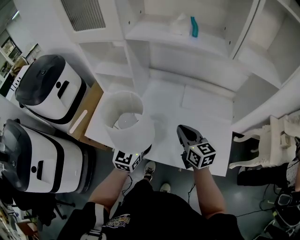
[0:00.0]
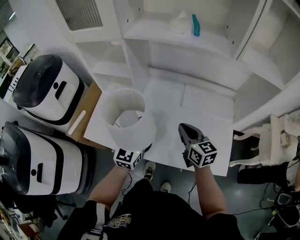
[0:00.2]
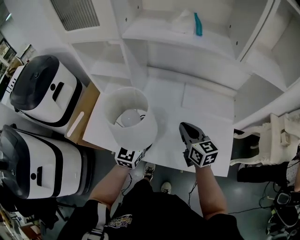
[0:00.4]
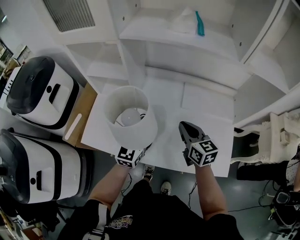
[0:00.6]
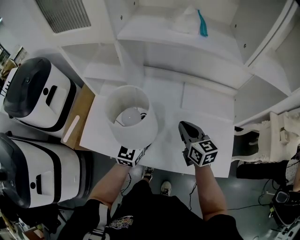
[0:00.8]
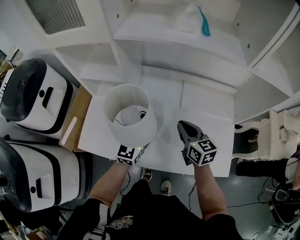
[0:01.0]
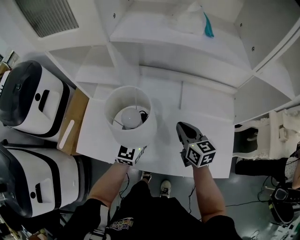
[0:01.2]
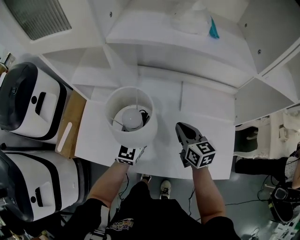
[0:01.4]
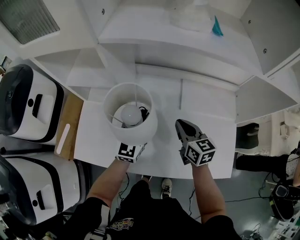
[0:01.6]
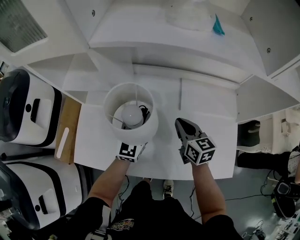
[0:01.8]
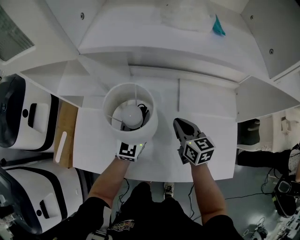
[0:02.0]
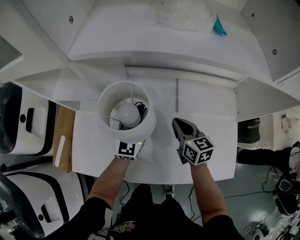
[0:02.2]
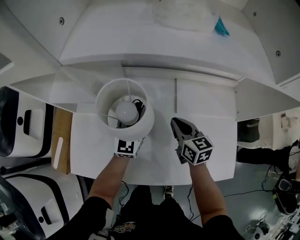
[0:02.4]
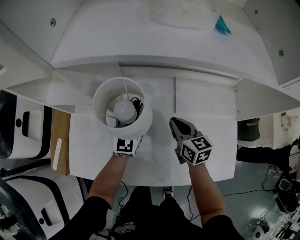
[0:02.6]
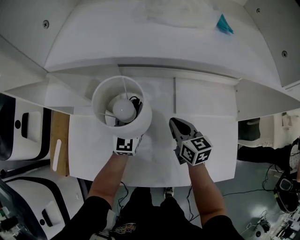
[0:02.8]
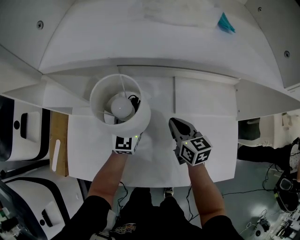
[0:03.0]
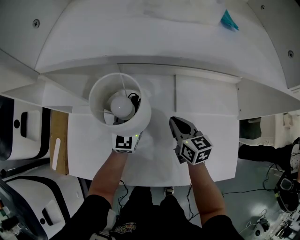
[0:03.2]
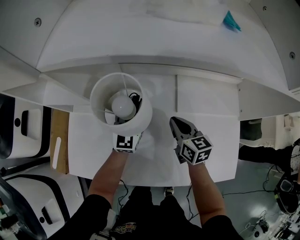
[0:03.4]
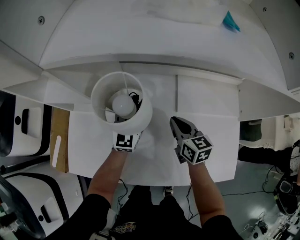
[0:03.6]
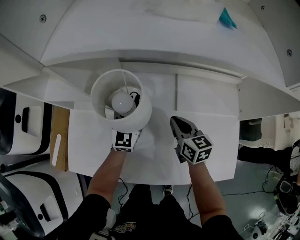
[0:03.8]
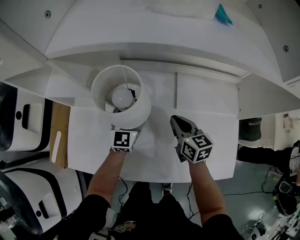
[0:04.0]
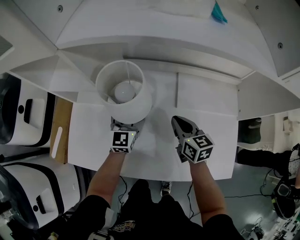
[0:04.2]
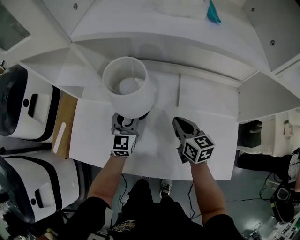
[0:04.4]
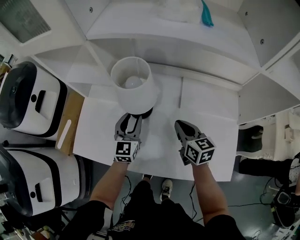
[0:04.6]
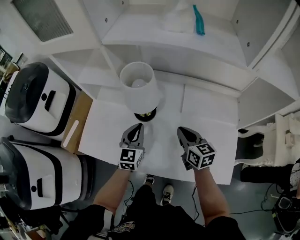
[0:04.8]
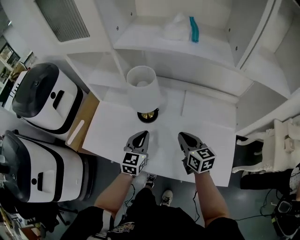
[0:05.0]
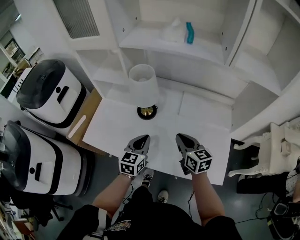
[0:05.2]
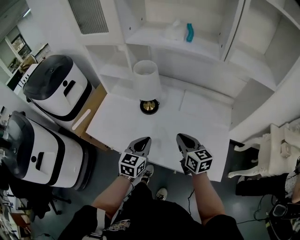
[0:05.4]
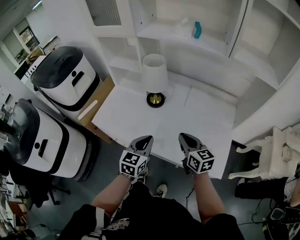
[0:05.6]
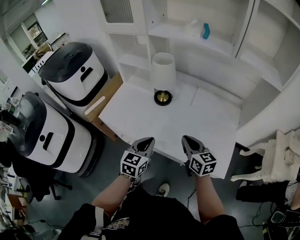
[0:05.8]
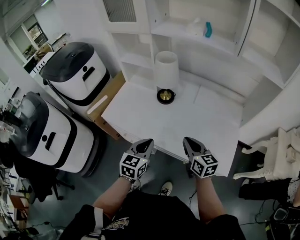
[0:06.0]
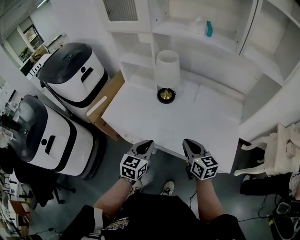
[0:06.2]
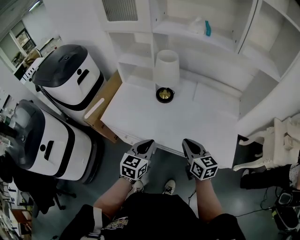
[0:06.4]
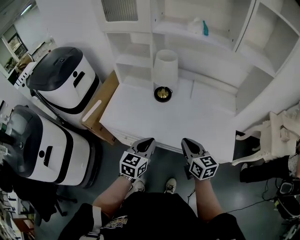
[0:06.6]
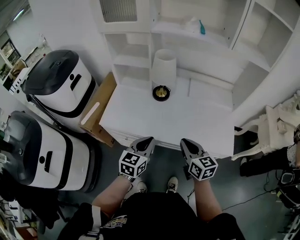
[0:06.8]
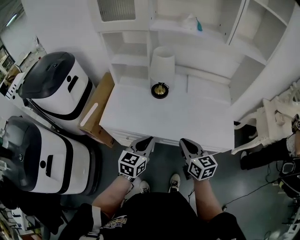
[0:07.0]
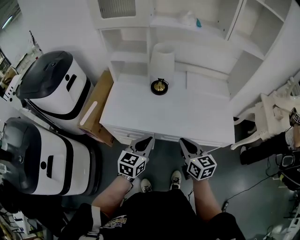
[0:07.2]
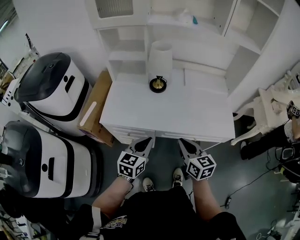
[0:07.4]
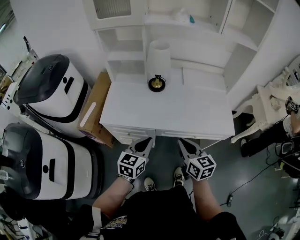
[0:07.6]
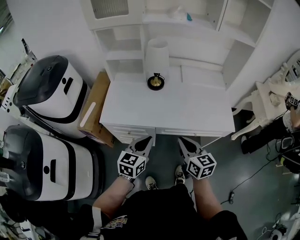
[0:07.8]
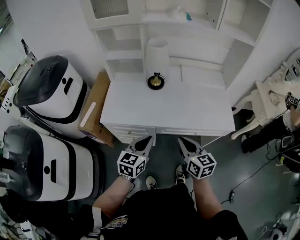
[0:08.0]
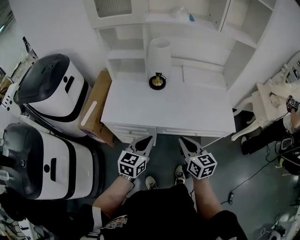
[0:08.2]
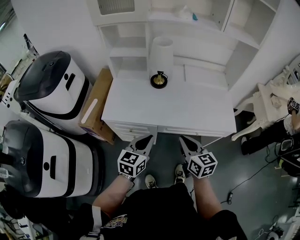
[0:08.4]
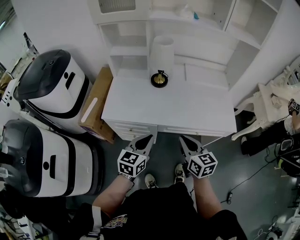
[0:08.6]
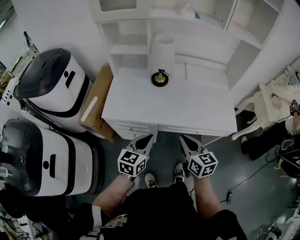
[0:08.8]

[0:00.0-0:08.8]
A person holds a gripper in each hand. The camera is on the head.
0:00.0 to 0:01.4: The two grippers go roughly 15 cm forward and downward.
0:01.4 to 0:03.0: Both grippers move forward and downward, roughly 10 cm.
0:03.0 to 0:04.4: The left gripper moves backward, roughly 5 cm.
0:04.4 to 0:05.8: The grippers both shift backward by roughly 30 cm. The left gripper closes its fingers.
0:05.8 to 0:07.4: The two grippers go approximately 20 cm to the left and backward. The left gripper swivels approximately 20 degrees.
0:07.4 to 0:08.8: The grippers stay close to where they were, moving slightly.

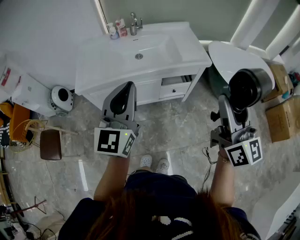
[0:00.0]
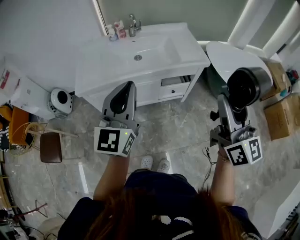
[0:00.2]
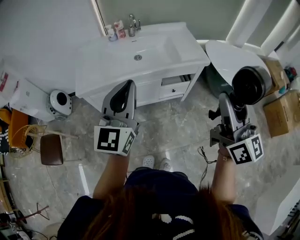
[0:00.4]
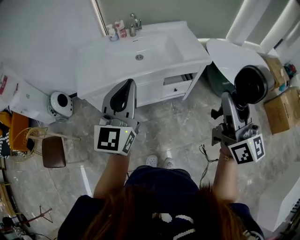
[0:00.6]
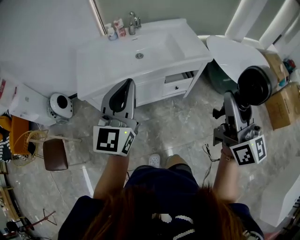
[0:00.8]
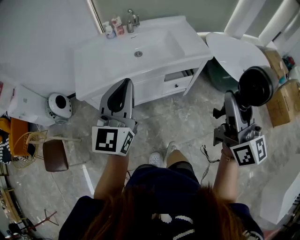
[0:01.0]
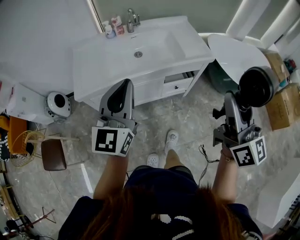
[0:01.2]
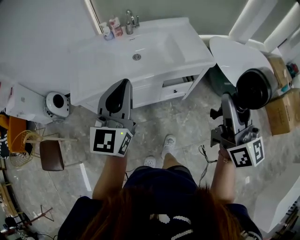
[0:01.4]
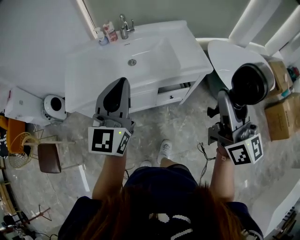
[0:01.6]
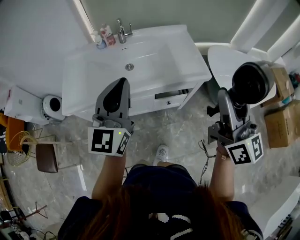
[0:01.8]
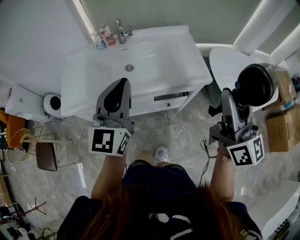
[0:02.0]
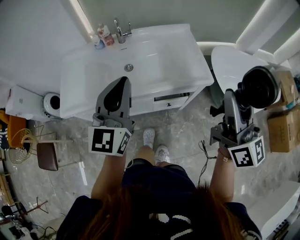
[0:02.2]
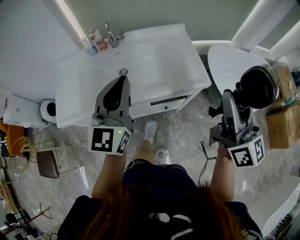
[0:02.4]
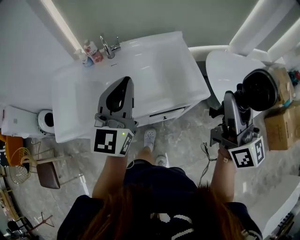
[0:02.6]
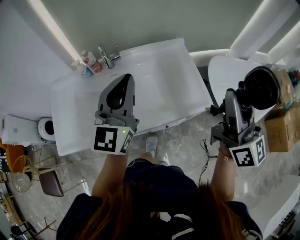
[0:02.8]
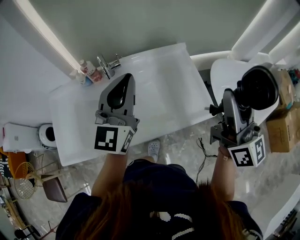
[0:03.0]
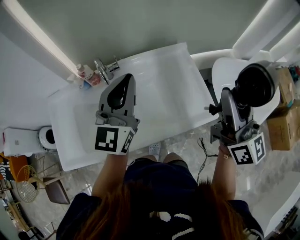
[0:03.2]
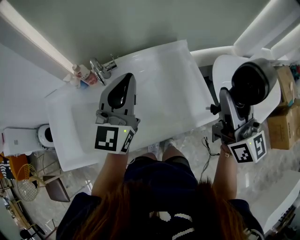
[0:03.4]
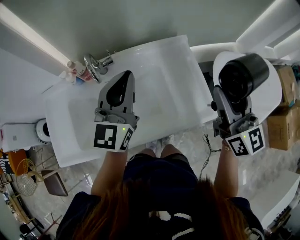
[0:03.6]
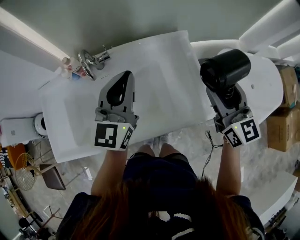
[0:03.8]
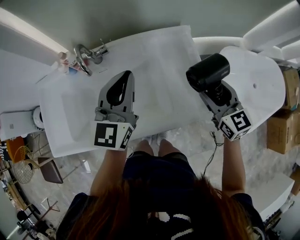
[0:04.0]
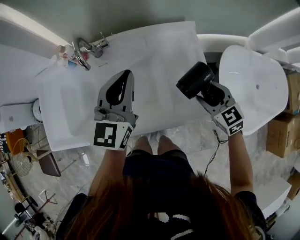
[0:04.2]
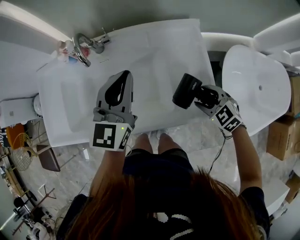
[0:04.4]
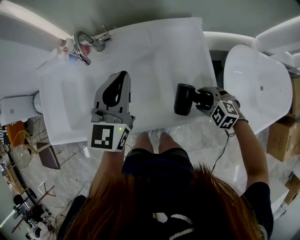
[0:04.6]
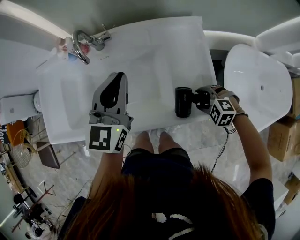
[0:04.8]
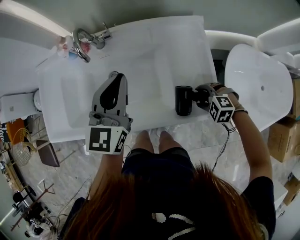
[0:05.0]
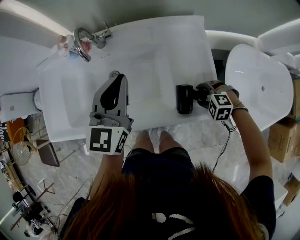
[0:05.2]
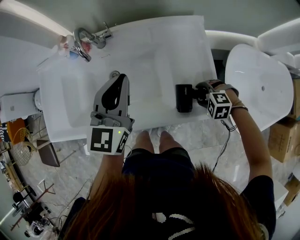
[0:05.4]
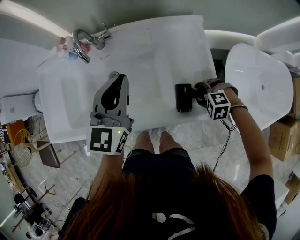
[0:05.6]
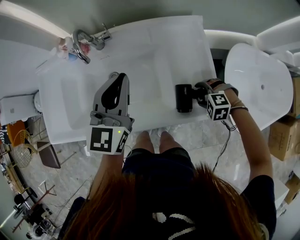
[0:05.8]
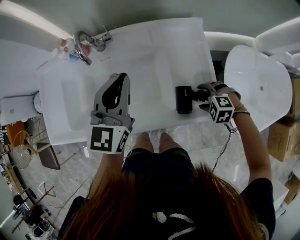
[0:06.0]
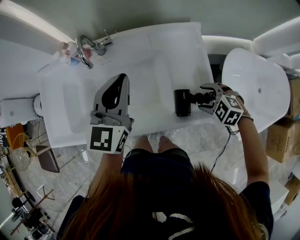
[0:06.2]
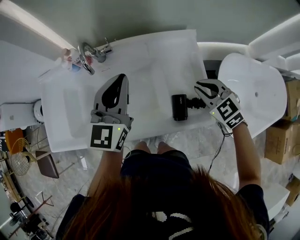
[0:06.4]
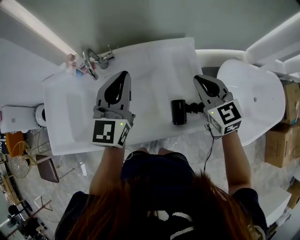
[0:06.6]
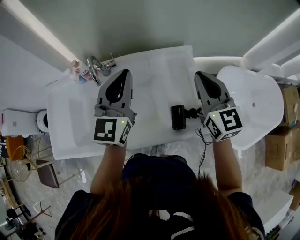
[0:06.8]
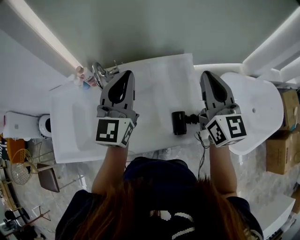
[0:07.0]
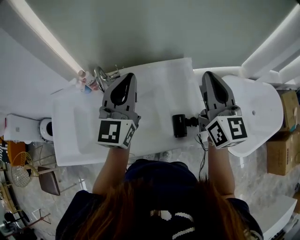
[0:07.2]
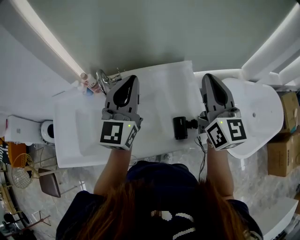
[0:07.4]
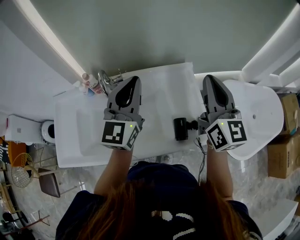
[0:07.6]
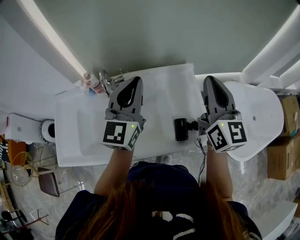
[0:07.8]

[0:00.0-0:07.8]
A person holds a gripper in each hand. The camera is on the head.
0:00.0 to 0:01.6: Both grippers travel together forward, some 15 cm.
0:01.6 to 0:03.2: The grippers both shift forward by about 40 cm.
0:03.2 to 0:04.6: The left gripper travels downward by some 15 cm. Meanwhile the right gripper heads downward, covering about 40 cm, and points its fingers some 80 degrees further downward.
0:06.2 to 0:07.8: The right gripper heads upward, covering approximately 35 cm, angles its fingers upward, by roughly 70 degrees, and closes; the left gripper heads upward, covering about 15 cm.

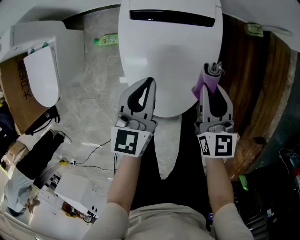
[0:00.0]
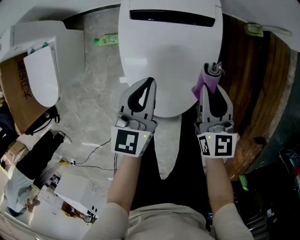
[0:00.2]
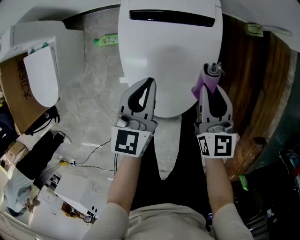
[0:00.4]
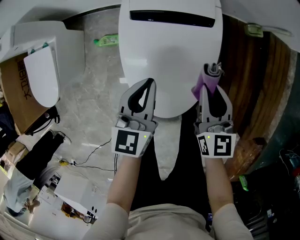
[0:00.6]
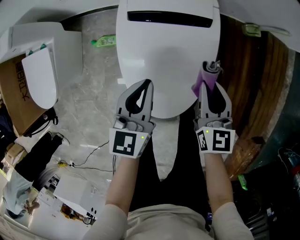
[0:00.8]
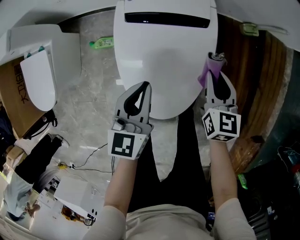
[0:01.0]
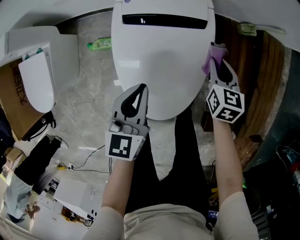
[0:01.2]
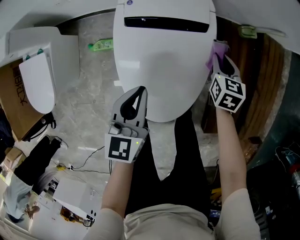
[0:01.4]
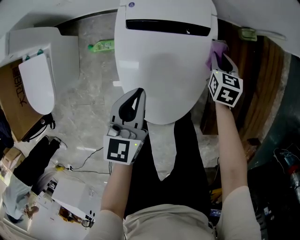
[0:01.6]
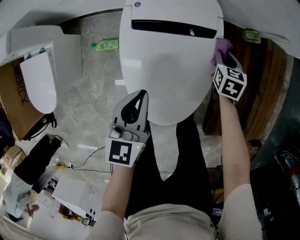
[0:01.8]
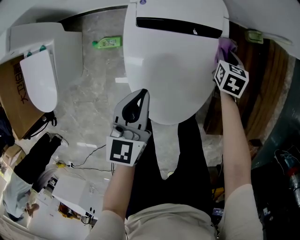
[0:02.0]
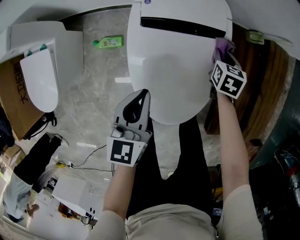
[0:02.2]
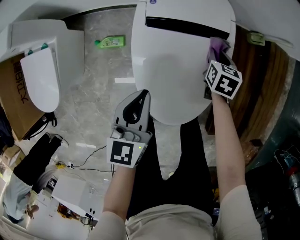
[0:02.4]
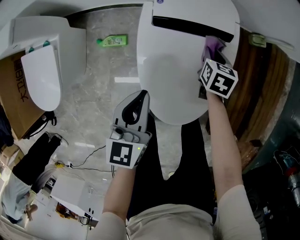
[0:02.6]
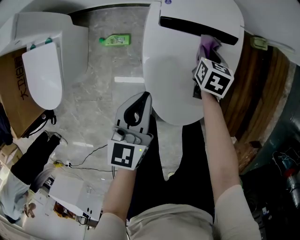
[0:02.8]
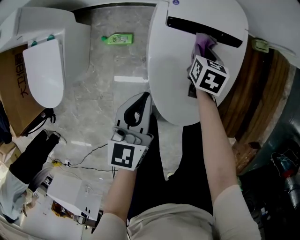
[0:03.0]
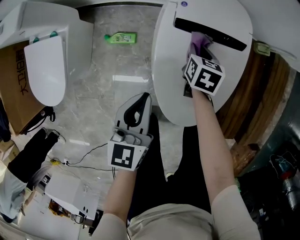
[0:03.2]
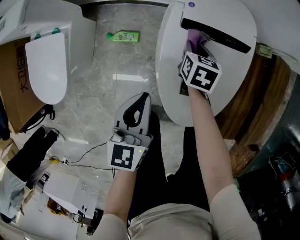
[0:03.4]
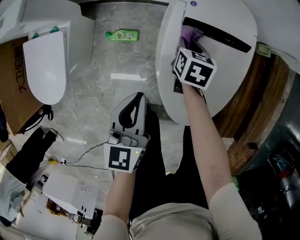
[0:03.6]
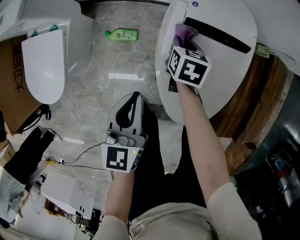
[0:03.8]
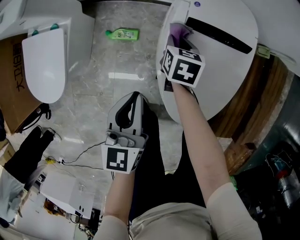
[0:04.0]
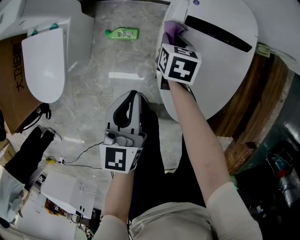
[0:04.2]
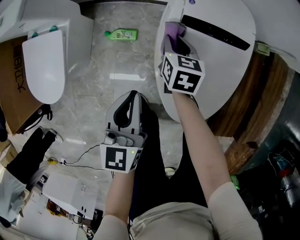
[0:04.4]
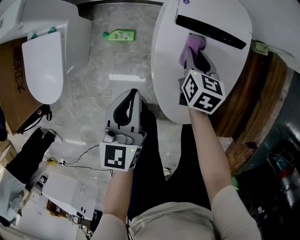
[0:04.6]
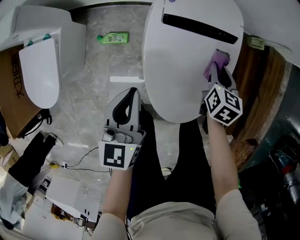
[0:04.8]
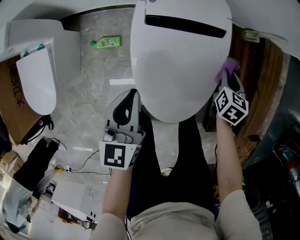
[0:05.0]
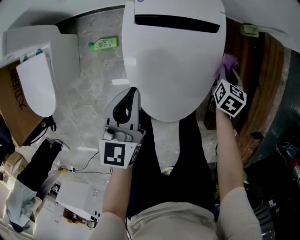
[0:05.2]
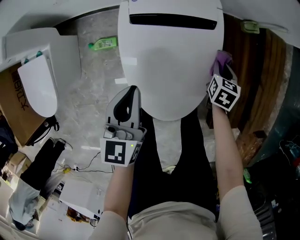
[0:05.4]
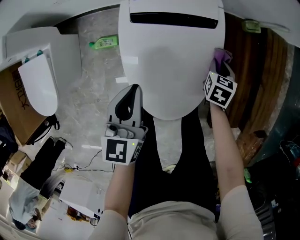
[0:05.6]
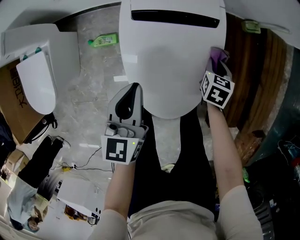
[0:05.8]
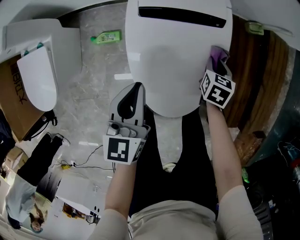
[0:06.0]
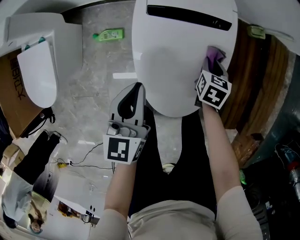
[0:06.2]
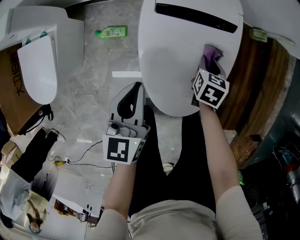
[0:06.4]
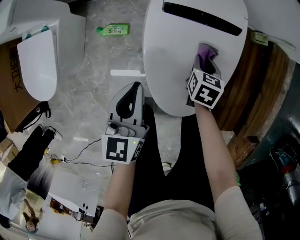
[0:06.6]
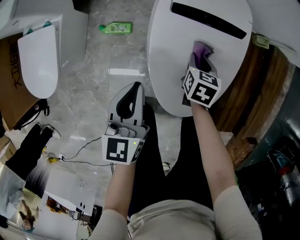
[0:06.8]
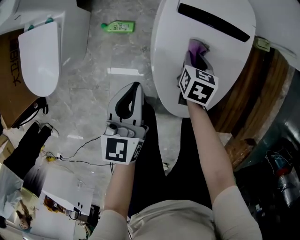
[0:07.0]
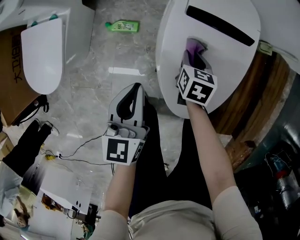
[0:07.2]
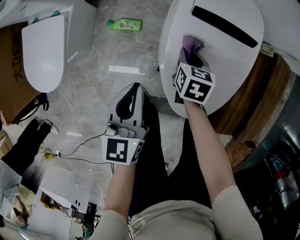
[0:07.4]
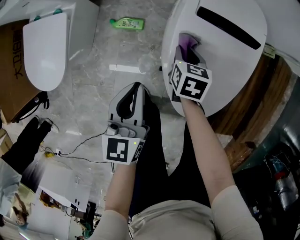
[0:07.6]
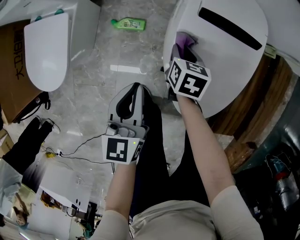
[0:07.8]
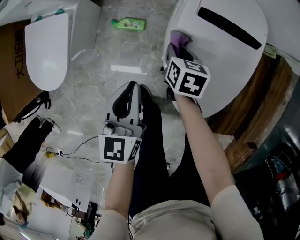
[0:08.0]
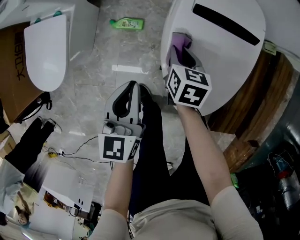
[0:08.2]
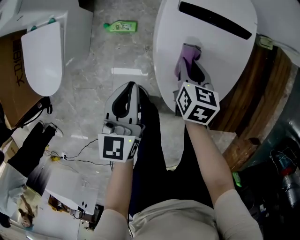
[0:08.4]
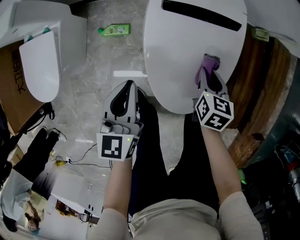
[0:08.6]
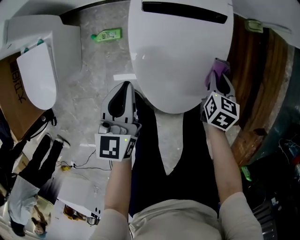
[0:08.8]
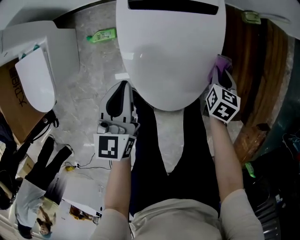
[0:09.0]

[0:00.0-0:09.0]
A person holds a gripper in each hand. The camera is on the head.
0:00.0 to 0:01.6: The right gripper is displaced forward, downward and to the right by approximately 20 cm, and rotates roughly 30 degrees.
0:01.6 to 0:03.0: The right gripper shifts approximately 20 cm to the left, while the left gripper goes approximately 10 cm to the left.
0:03.0 to 0:04.4: The right gripper shifts approximately 15 cm to the left. The left gripper travels to the left by about 5 cm.
0:04.4 to 0:06.0: The right gripper heads to the right, covering some 30 cm, and rotates about 20 degrees, while the left gripper shifts roughly 10 cm to the right.
0:06.0 to 0:07.6: The right gripper shifts approximately 30 cm to the left, while the left gripper is displaced to the left by about 15 cm.
0:07.6 to 0:09.0: The right gripper shifts by some 35 cm, and turns by approximately 20 degrees; the left gripper moves roughly 15 cm.
